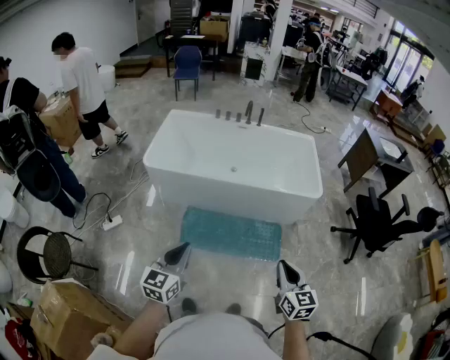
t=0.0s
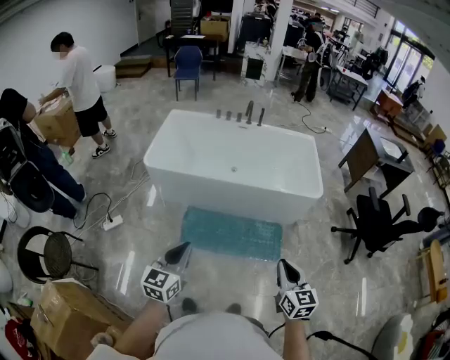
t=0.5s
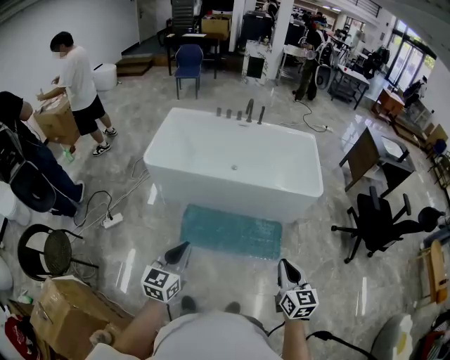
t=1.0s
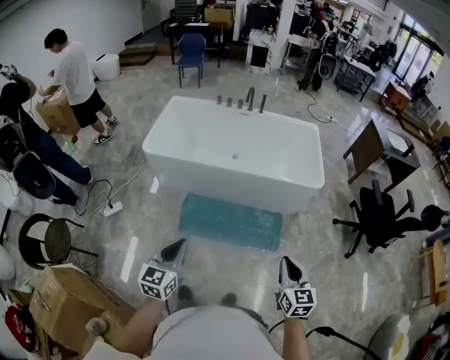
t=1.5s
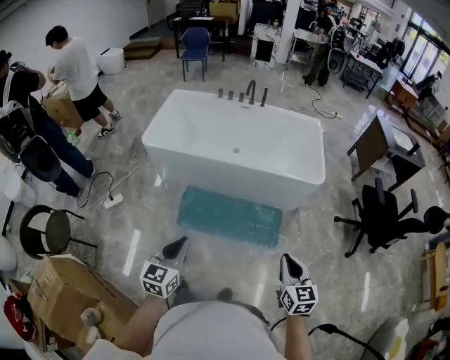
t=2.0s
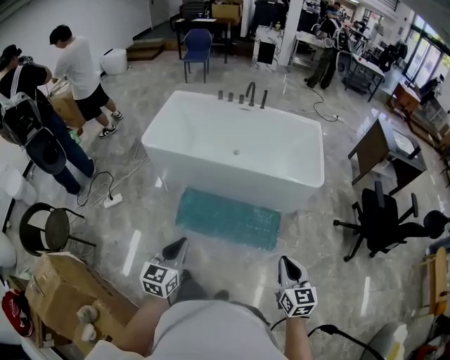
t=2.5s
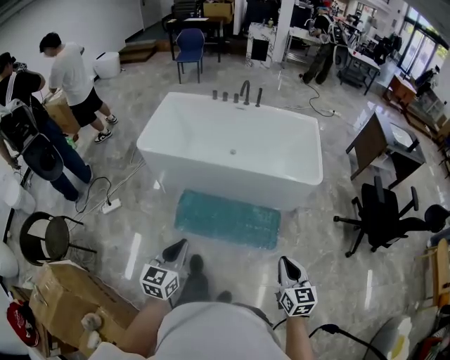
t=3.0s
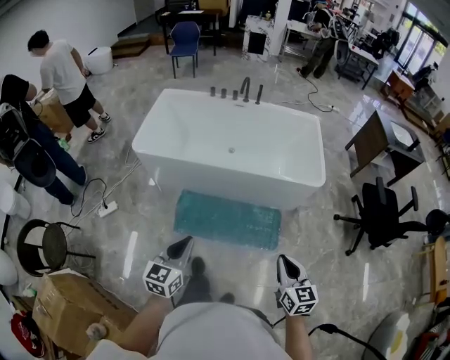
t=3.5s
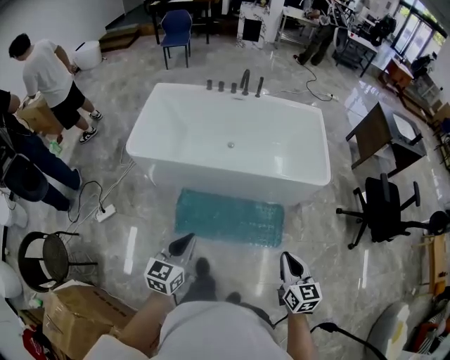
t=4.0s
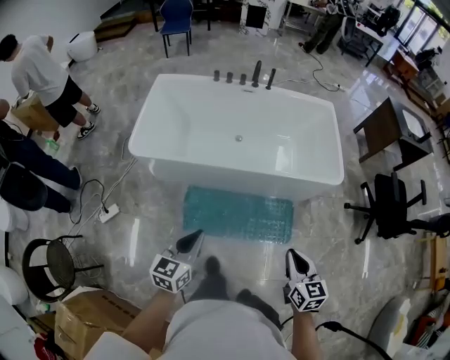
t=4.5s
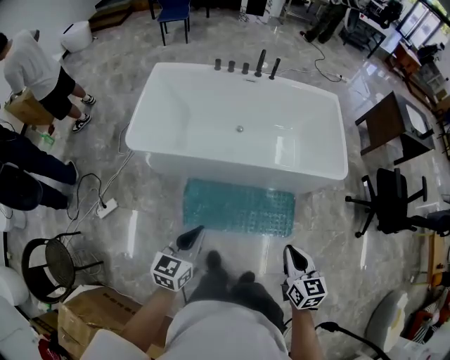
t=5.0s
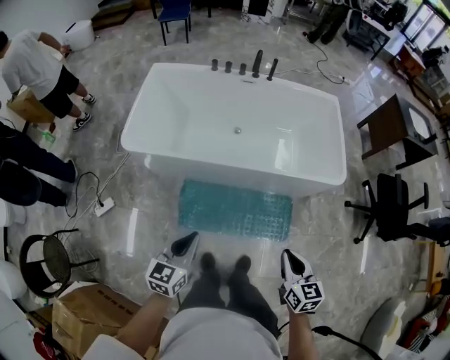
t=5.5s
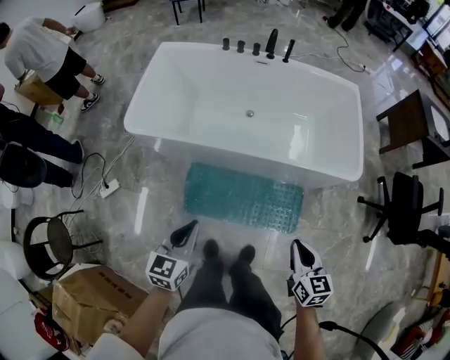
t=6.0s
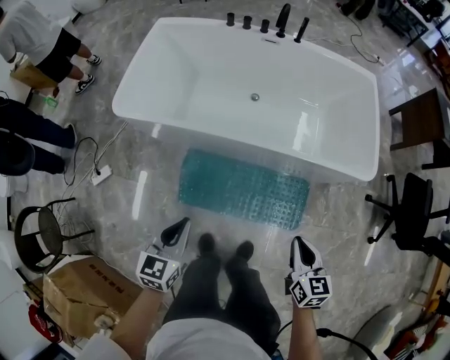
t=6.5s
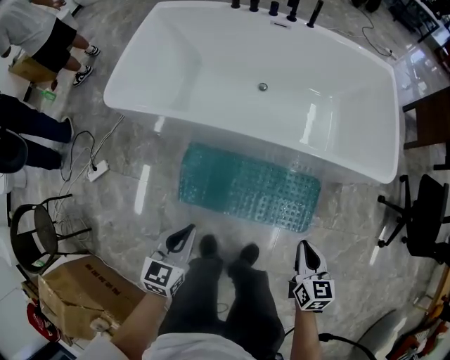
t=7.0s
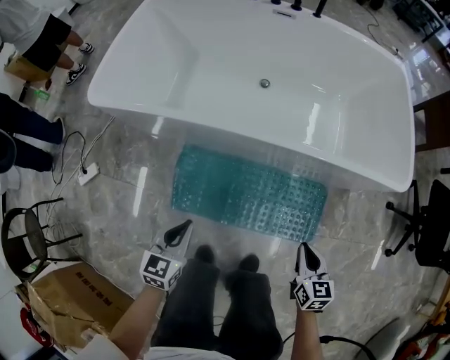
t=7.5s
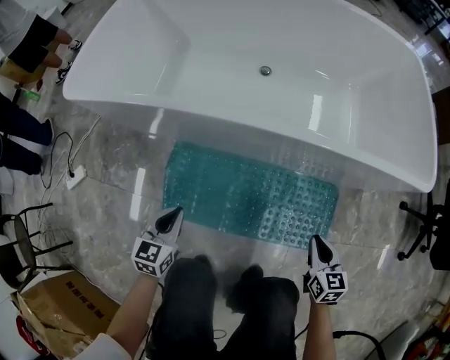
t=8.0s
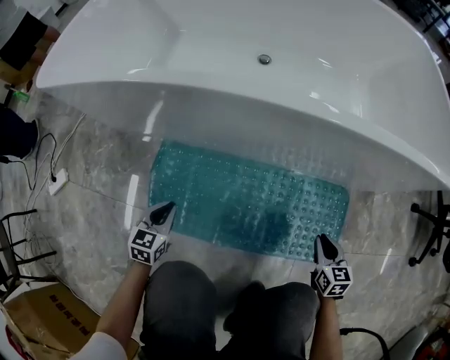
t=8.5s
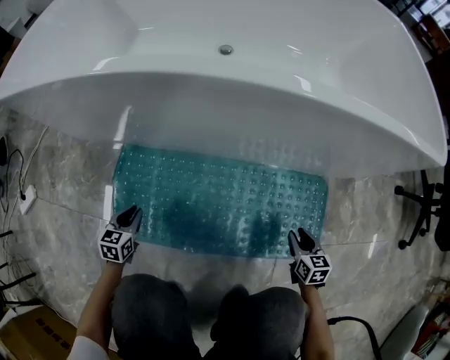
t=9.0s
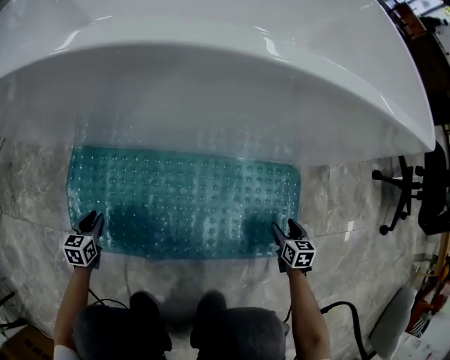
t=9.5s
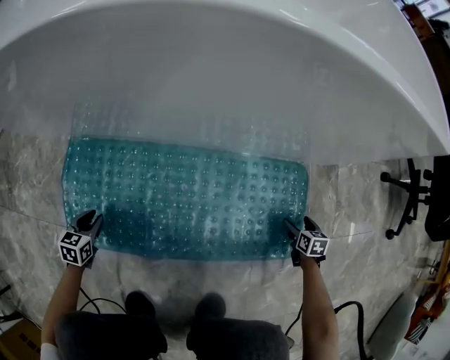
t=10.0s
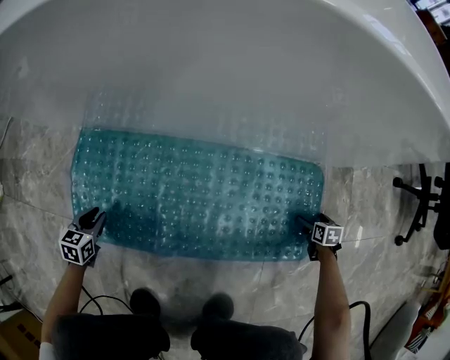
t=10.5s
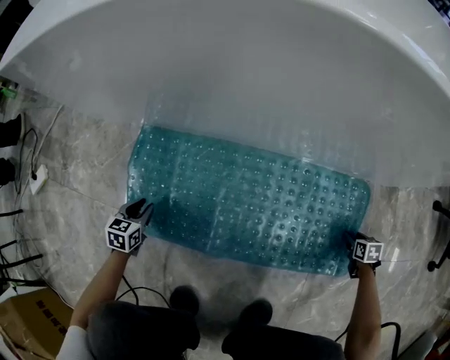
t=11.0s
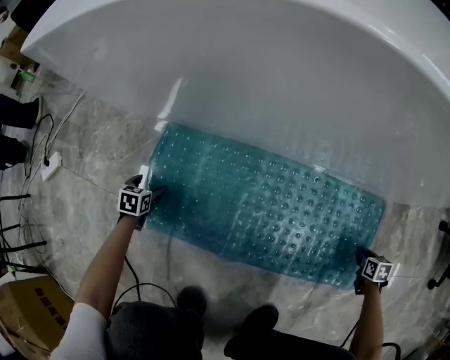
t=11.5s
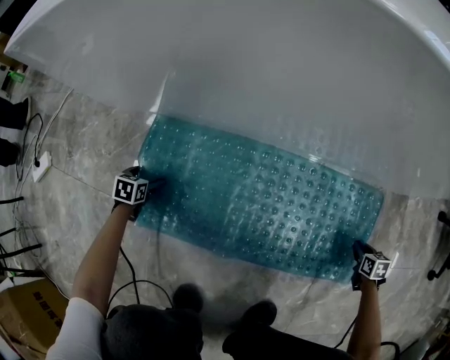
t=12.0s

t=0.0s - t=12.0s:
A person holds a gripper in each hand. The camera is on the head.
t=0.0s - t=2.0s: The two grippers go about 15 cm to the right.
t=2.0s - t=4.0s: The left gripper is displaced forward by roughly 25 cm. The right gripper is displaced forward and to the left by roughly 20 cm.
t=4.0s - t=6.0s: The grippers both shift forward and downward by roughly 25 cm.
t=6.0s - t=8.0s: Both grippers move downward, approximately 60 cm.
t=8.0s - t=10.0s: The right gripper is displaced downward and to the right by roughly 50 cm, turns by about 30 degrees, and opens up; the left gripper is displaced downward by about 50 cm, and changes its angle by about 20 degrees.
t=10.0s - t=12.0s: The left gripper travels to the left, downward and forward by about 15 cm, and opens its fingers; the right gripper travels to the left by roughly 5 cm, and closes its fingers.

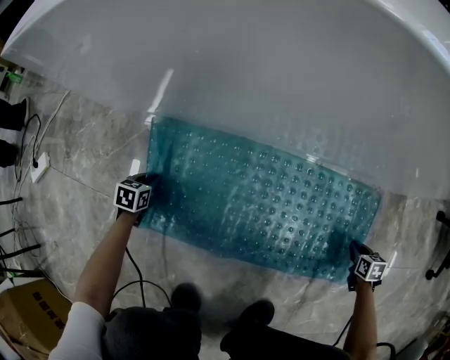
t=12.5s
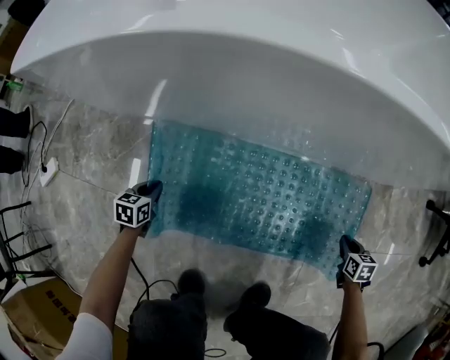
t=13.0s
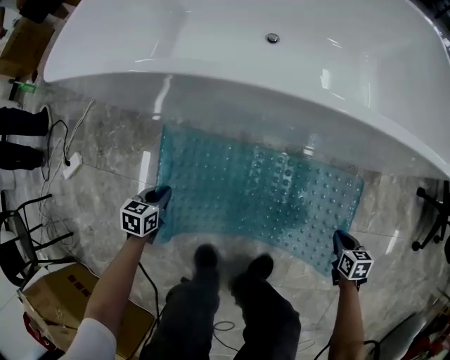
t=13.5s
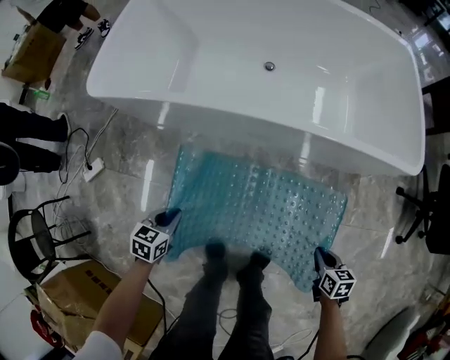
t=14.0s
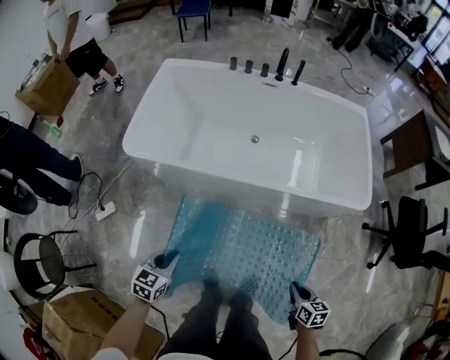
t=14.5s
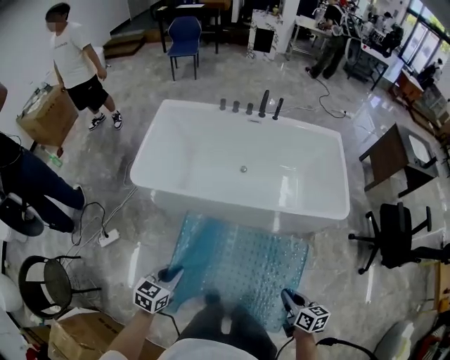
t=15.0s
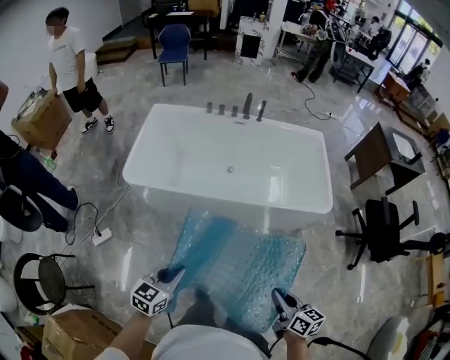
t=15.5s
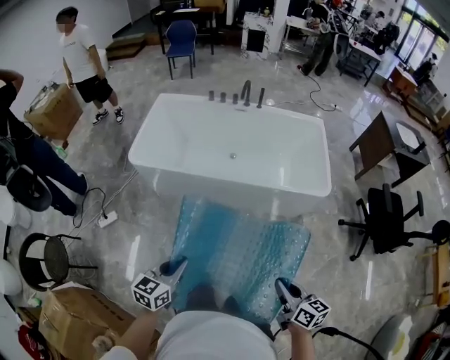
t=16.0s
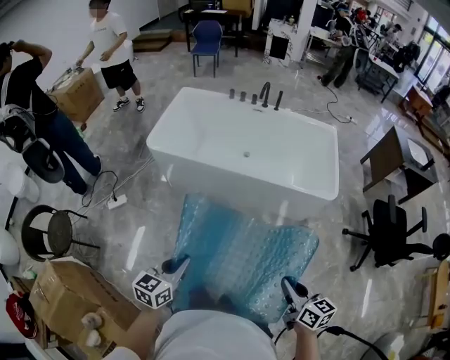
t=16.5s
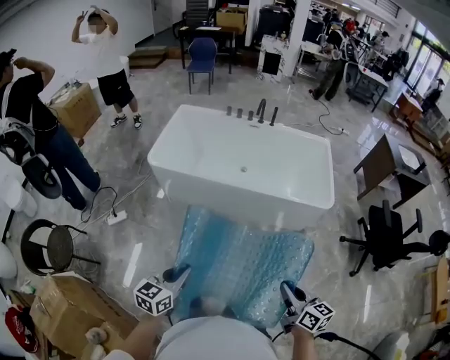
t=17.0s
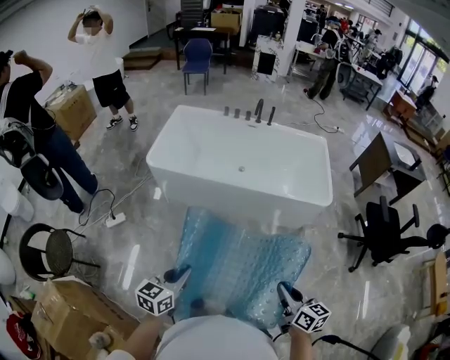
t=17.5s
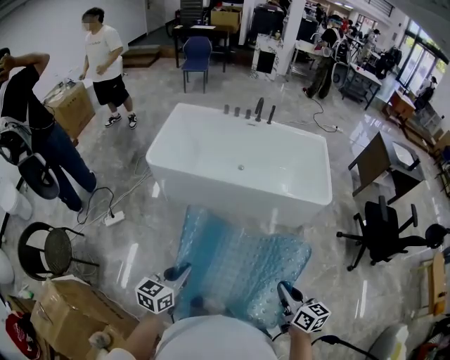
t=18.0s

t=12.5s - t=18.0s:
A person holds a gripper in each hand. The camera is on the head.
t=12.5s - t=14.5s: The grippers both shift upward by roughly 90 cm. The left gripper changes its angle by about 20 degrees, while the right gripper turns by roughly 20 degrees.
t=14.5s - t=16.0s: The right gripper moves upward and backward, roughly 40 cm, and swivels some 30 degrees; the left gripper goes approximately 40 cm upward, backward and to the right.
t=16.0s - t=18.0s: Both grippers move backward and to the left, about 15 cm.

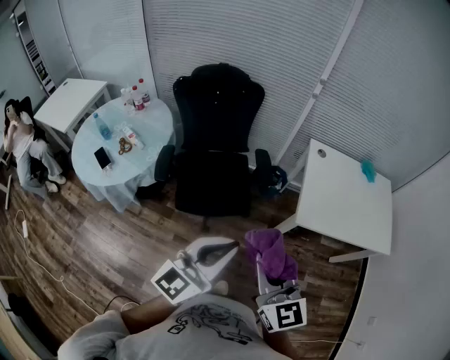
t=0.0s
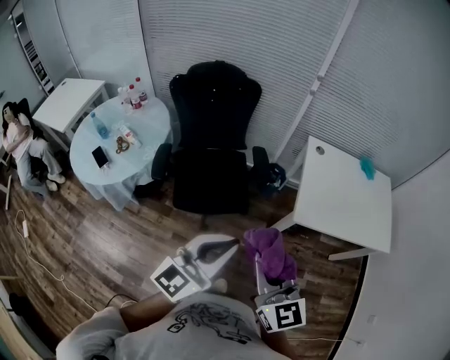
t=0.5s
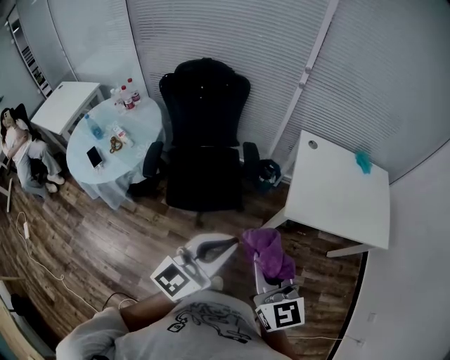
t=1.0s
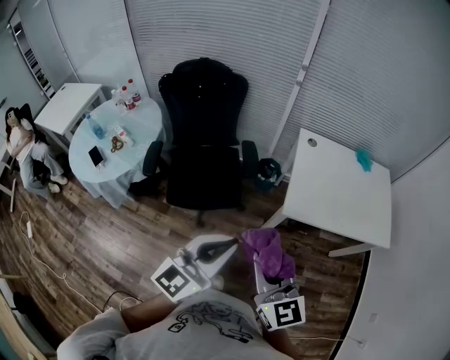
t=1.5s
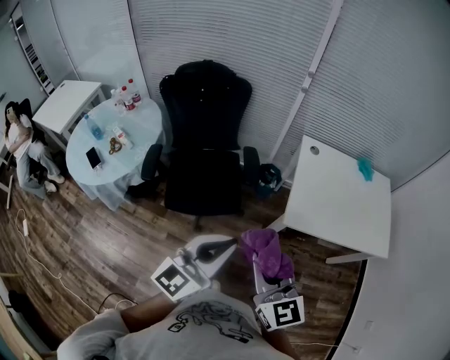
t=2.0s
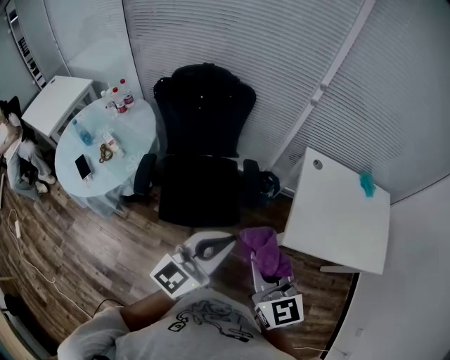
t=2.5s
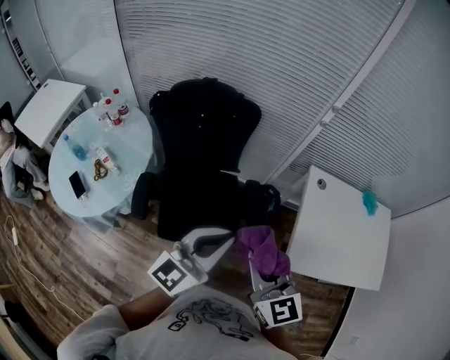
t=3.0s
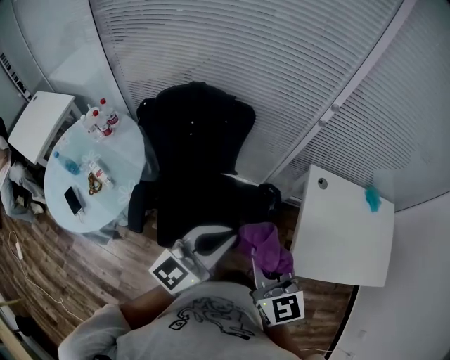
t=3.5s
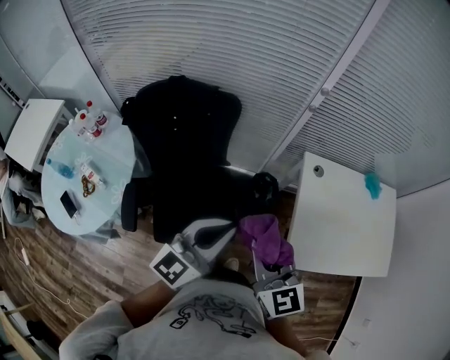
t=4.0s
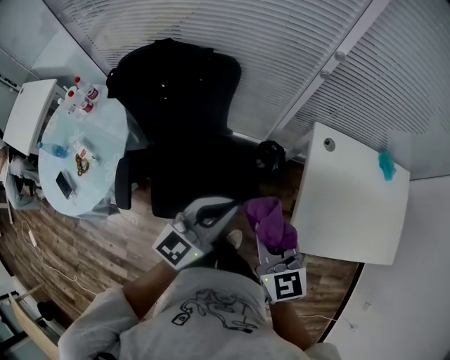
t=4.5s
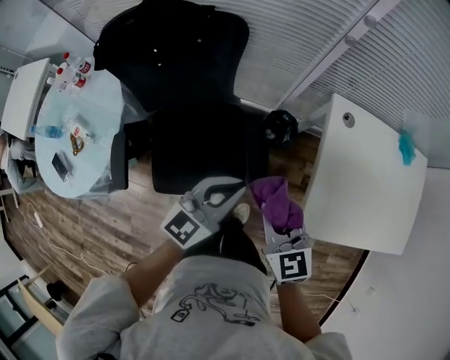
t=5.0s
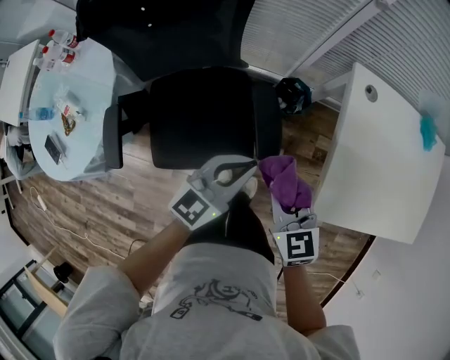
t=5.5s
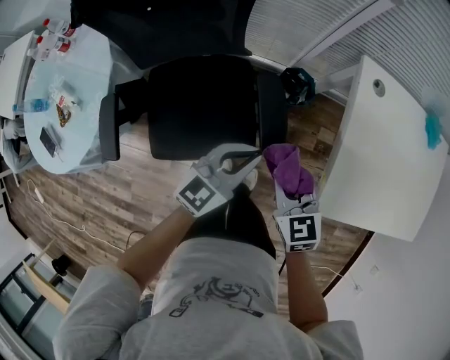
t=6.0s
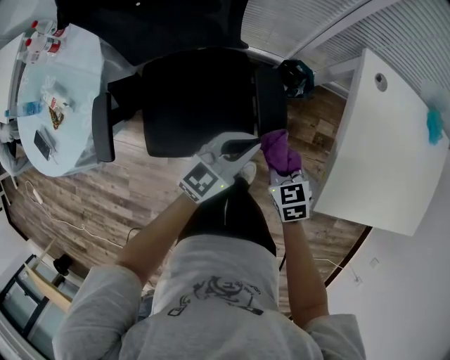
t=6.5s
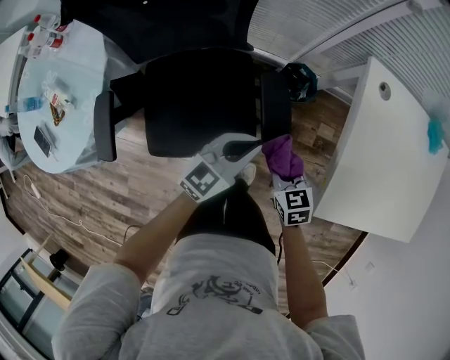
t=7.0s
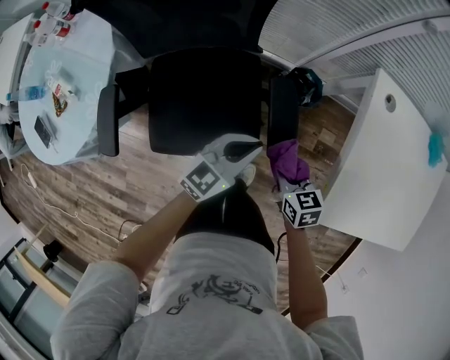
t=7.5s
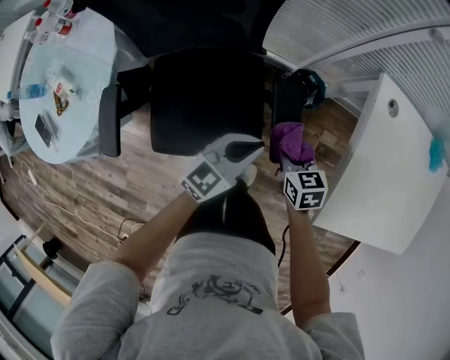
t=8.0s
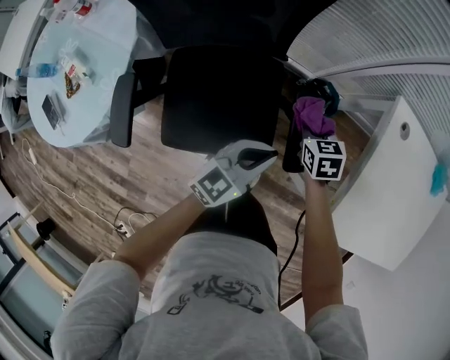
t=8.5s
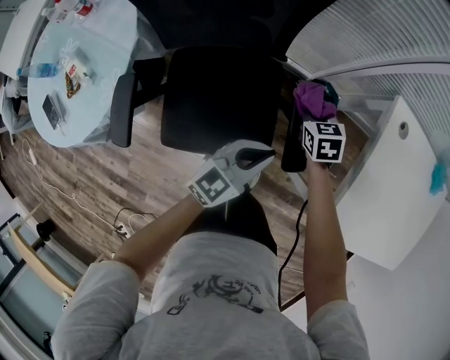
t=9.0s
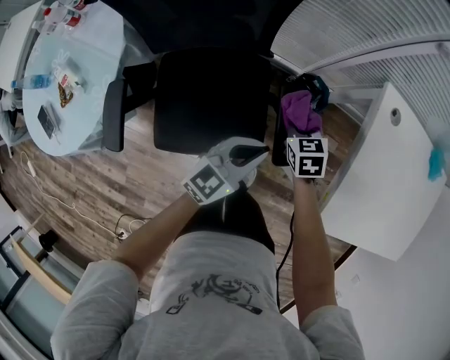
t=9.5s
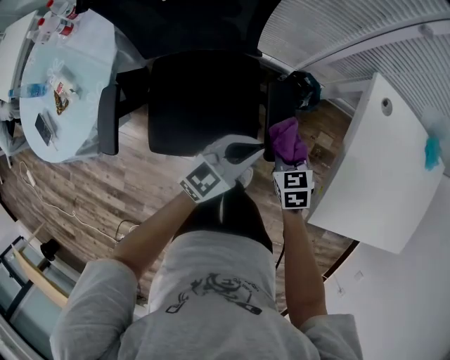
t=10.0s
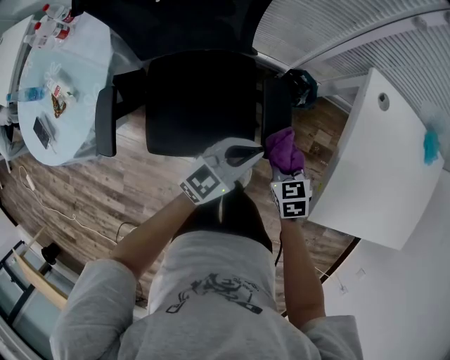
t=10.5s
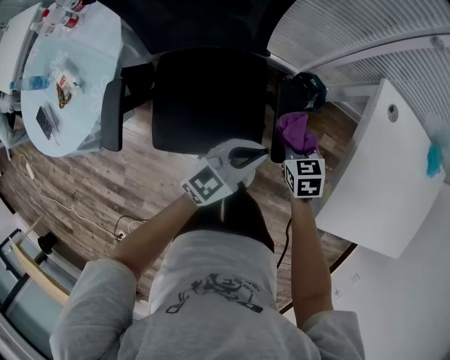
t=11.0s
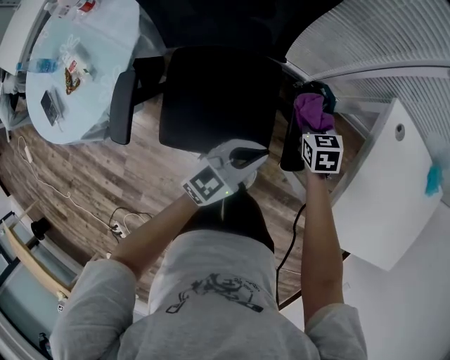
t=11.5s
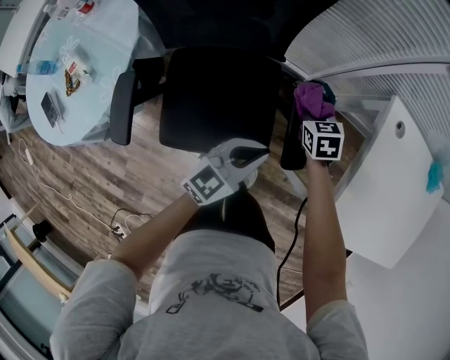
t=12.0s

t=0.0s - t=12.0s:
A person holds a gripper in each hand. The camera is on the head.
t=0.0s - t=2.0s: The two grippers go roughly 10 cm to the right.
t=2.0s - t=4.0s: The two grippers go approximately 35 cm forward.
t=4.0s - t=6.0s: Both grippers travel together downward, about 30 cm. The right gripper swivels roughly 30 degrees.
t=6.0s - t=8.0s: The left gripper goes some 5 cm downward. The right gripper moves downward and forward, about 15 cm.
t=8.0s - t=10.0s: The right gripper moves roughly 15 cm forward and comes back.
t=10.0s - t=12.0s: The left gripper is displaced to the left by about 5 cm. The right gripper moves forward and to the left, approximately 15 cm.
